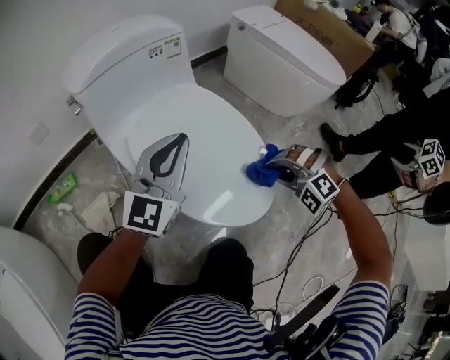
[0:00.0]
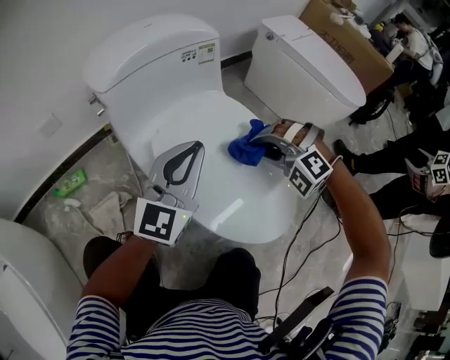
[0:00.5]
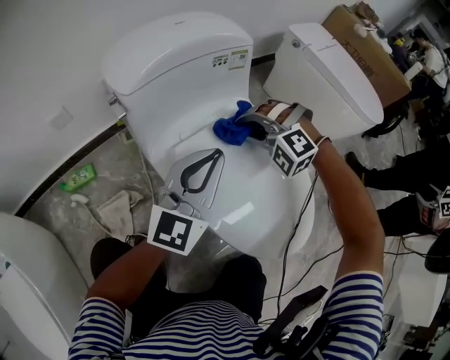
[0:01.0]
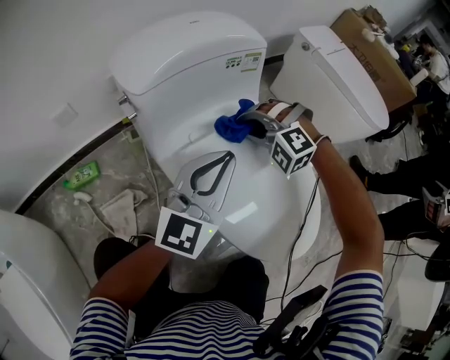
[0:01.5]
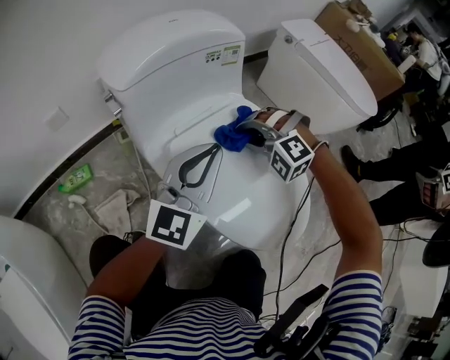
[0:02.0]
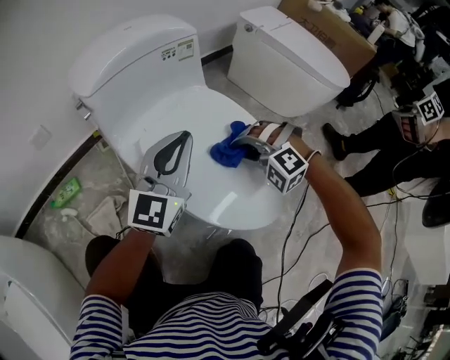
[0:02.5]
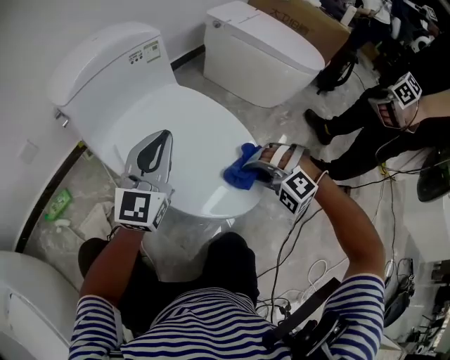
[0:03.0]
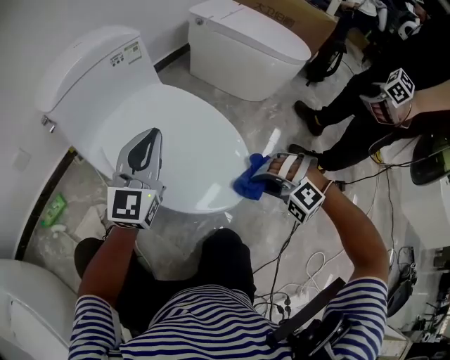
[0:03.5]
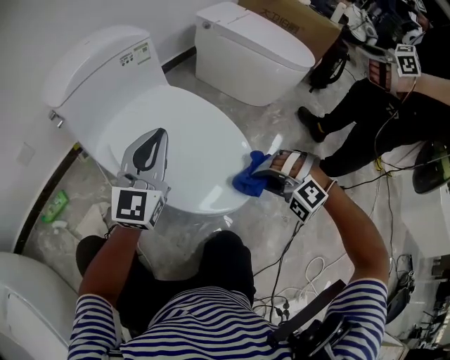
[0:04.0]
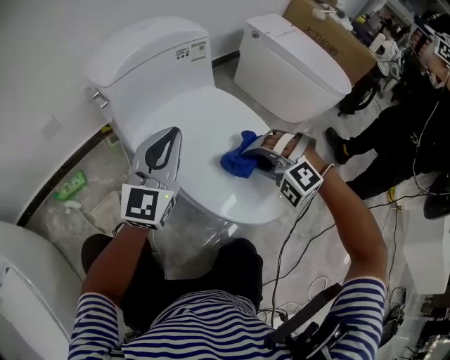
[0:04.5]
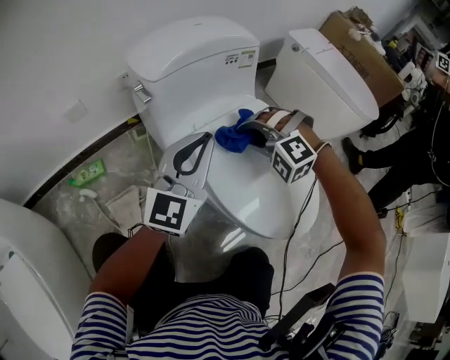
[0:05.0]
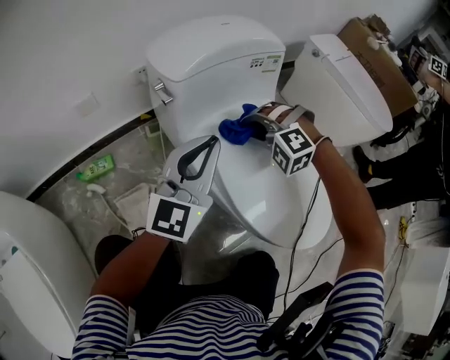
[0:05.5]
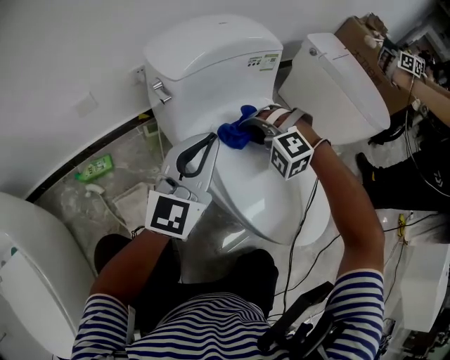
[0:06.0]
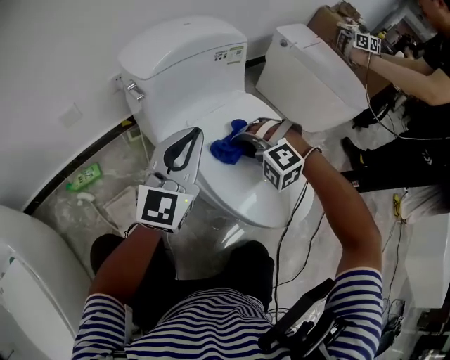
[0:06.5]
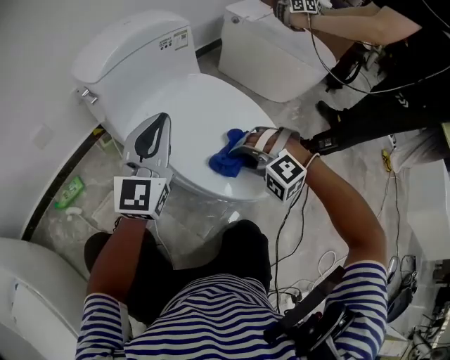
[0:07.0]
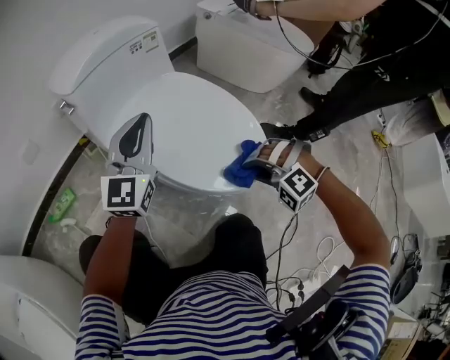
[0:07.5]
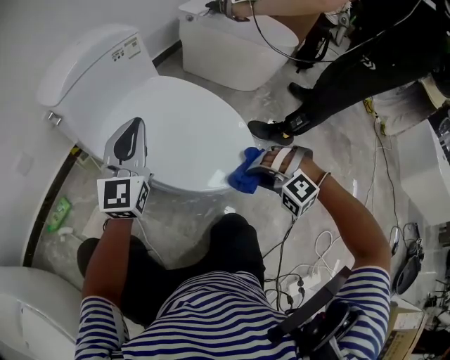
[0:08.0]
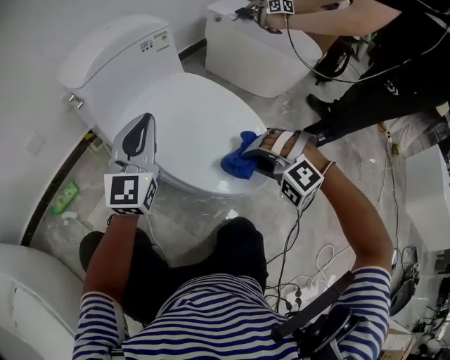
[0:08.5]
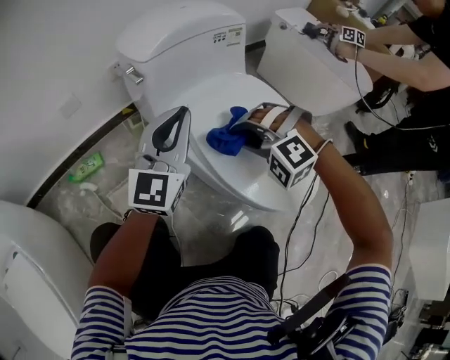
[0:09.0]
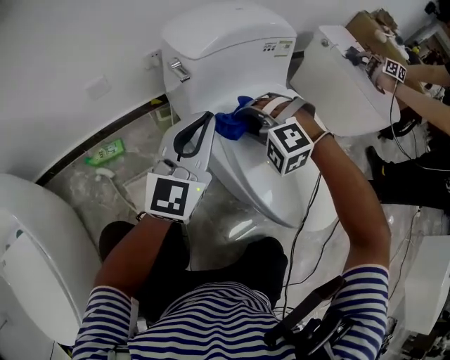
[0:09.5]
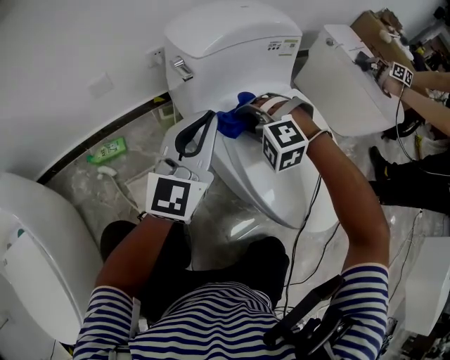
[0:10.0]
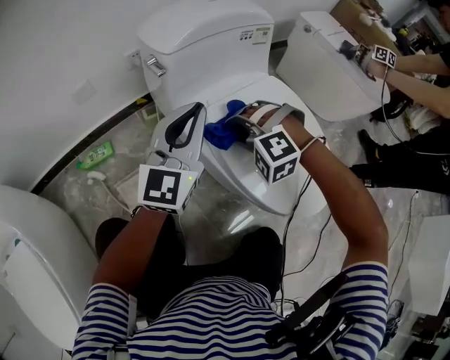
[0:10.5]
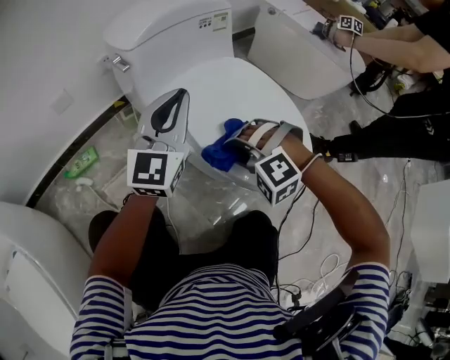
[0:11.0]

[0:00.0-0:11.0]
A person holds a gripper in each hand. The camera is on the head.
0:00.0 to 0:02.0: The left gripper moves roughly 10 cm.
0:02.0 to 0:03.5: The left gripper changes place by roughly 10 cm.
0:03.5 to 0:05.5: The left gripper shifts by some 20 cm.
0:05.5 to 0:07.5: The left gripper ends up some 10 cm from where it was.
0:07.5 to 0:09.0: The left gripper shifts by roughly 10 cm.

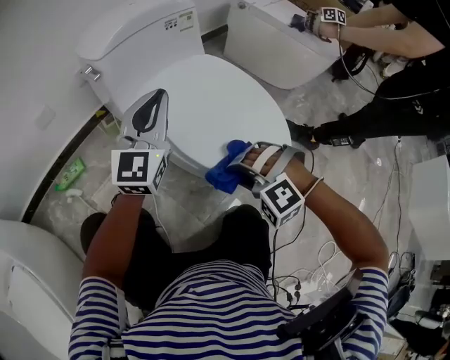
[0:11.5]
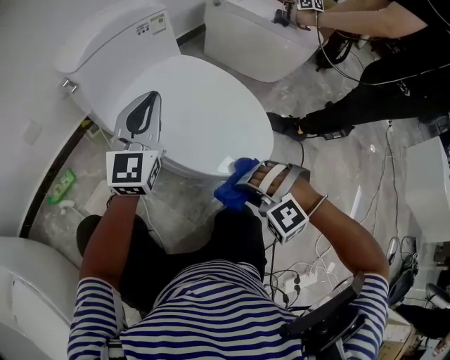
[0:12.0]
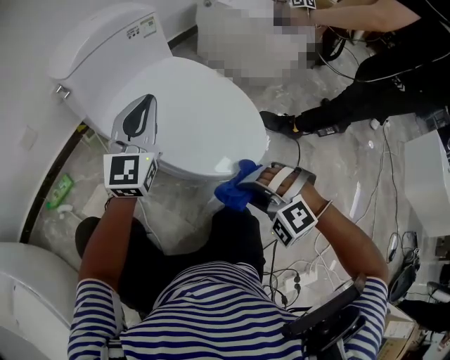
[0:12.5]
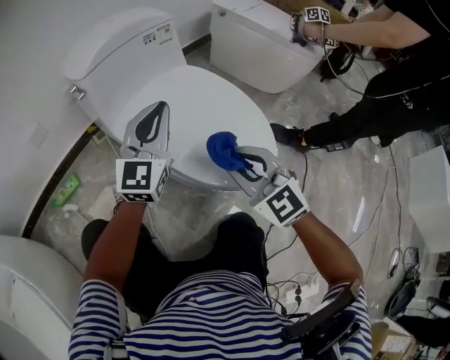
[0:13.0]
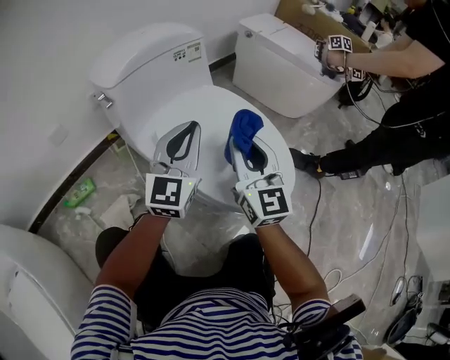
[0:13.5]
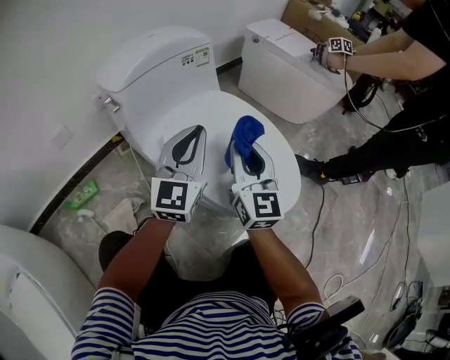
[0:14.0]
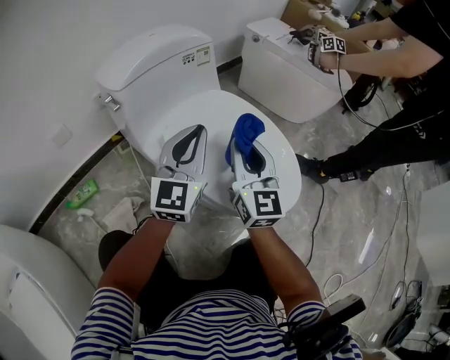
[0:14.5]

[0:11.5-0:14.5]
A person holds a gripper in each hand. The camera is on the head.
0:11.5 to 0:13.0: The left gripper moves some 5 cm.

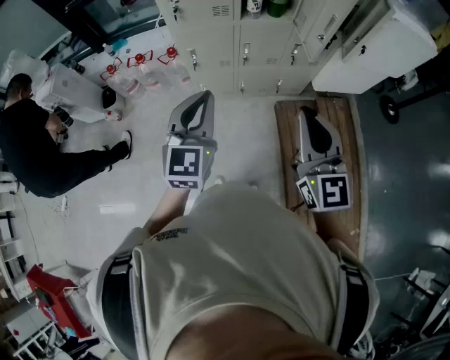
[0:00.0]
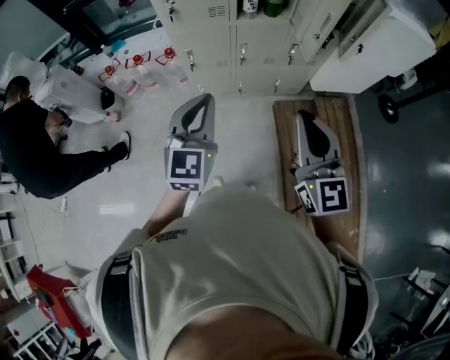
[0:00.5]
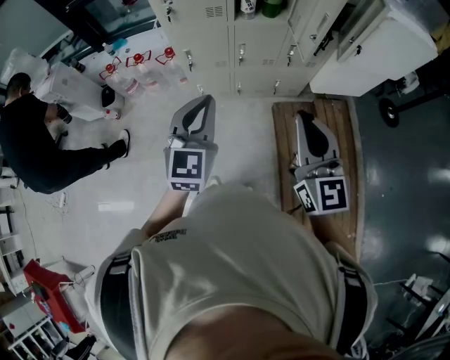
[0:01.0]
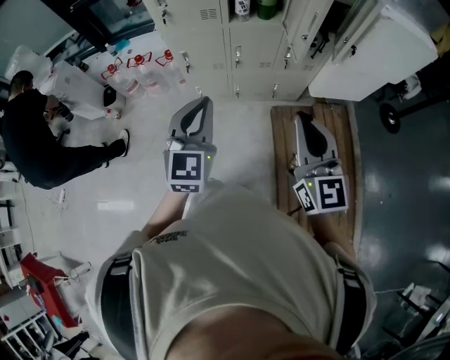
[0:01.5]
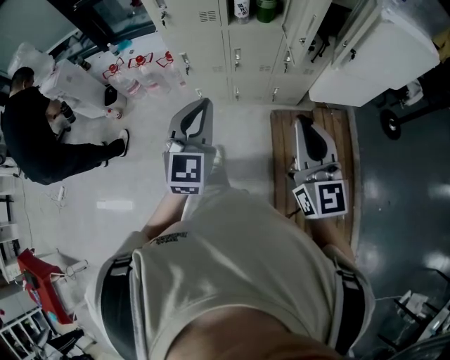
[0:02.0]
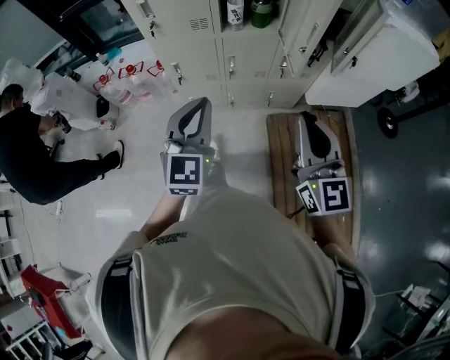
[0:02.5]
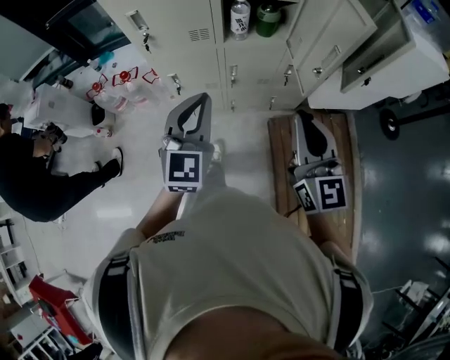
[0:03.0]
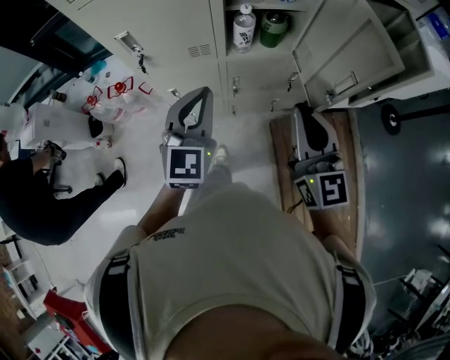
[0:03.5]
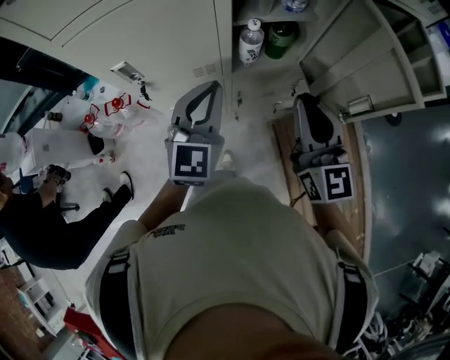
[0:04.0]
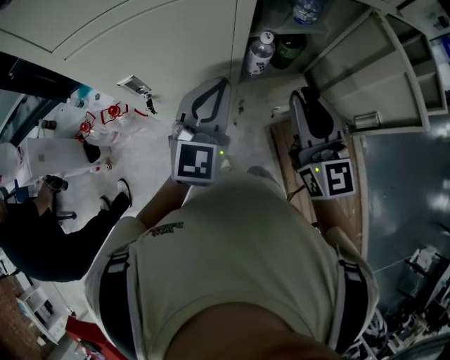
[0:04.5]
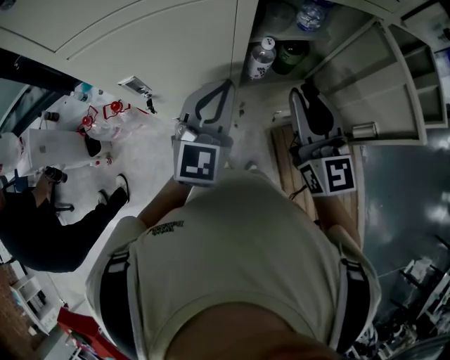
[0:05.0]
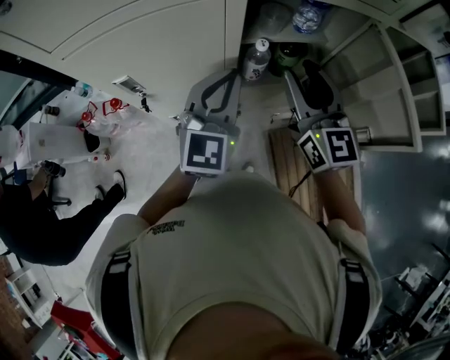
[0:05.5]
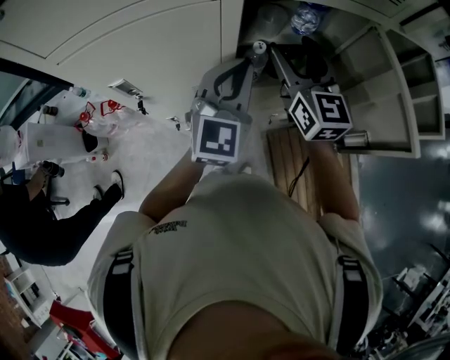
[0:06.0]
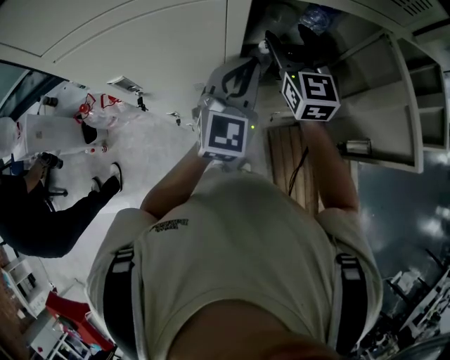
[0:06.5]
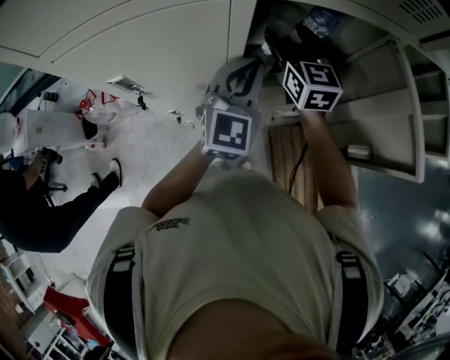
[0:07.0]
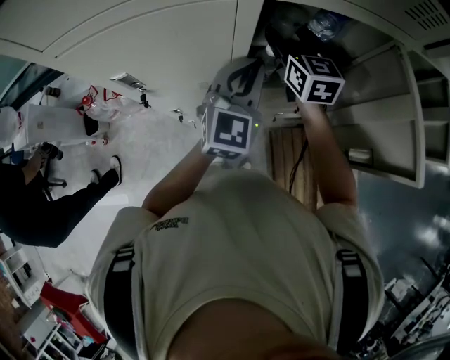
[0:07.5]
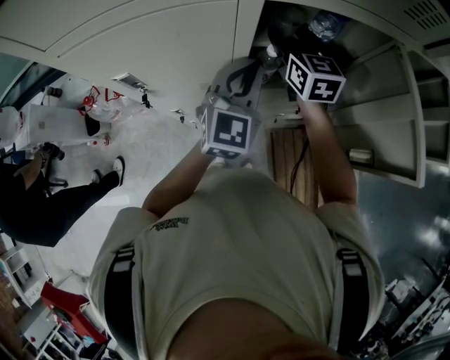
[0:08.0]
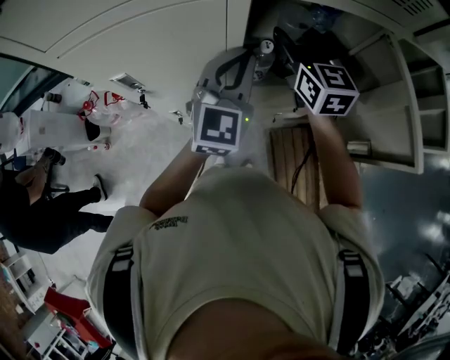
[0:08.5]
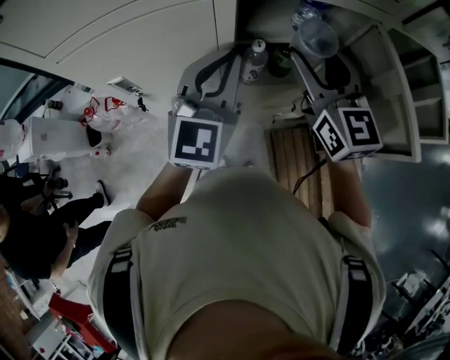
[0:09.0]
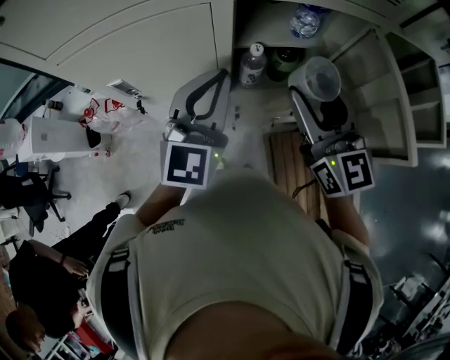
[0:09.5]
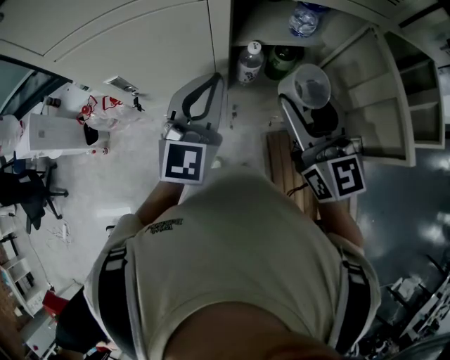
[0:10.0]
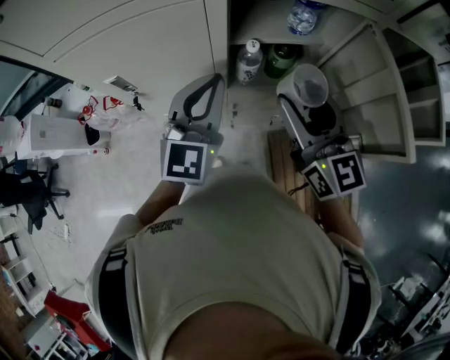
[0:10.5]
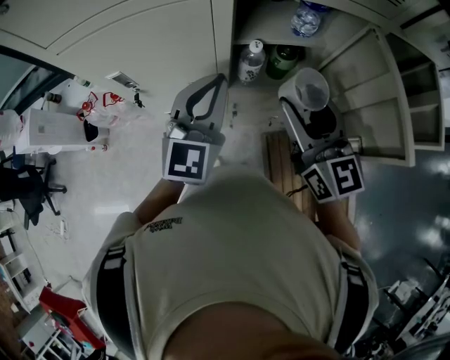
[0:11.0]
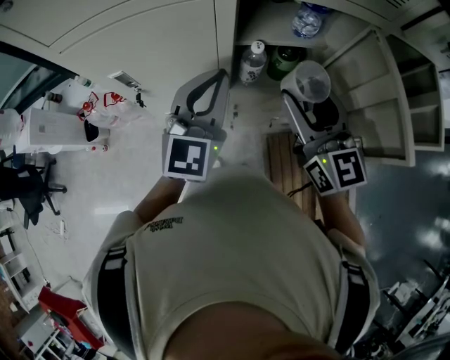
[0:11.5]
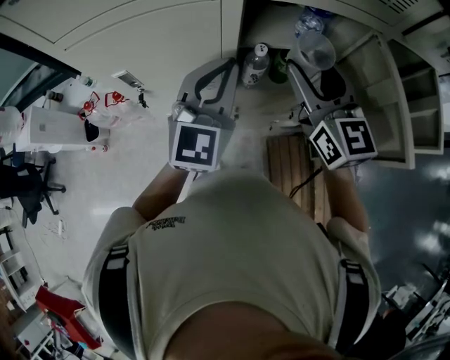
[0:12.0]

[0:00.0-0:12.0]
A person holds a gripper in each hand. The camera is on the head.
0:00.0 to 0:02.0: Both grippers travel together to the right, about 10 cm.
0:02.0 to 0:04.0: Both grippers move forward, about 40 cm.
0:04.0 to 0:06.0: The left gripper heads forward and to the right, covering about 10 cm; the right gripper goes approximately 20 cm forward, and opens.
0:06.0 to 0:08.0: The right gripper moves forward and downward, roughly 10 cm. Meanwhile the left gripper moves about 5 cm.
0:08.0 to 0:10.0: The right gripper goes approximately 20 cm backward. The left gripper is displaced backward by approximately 5 cm.
0:10.0 to 0:12.0: The right gripper moves forward, about 5 cm.

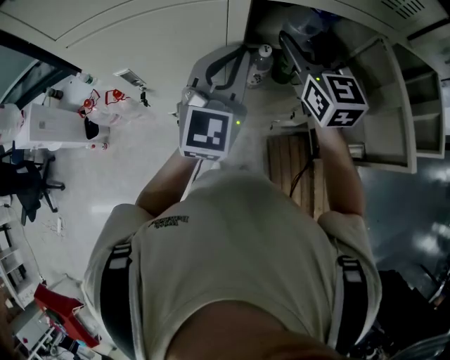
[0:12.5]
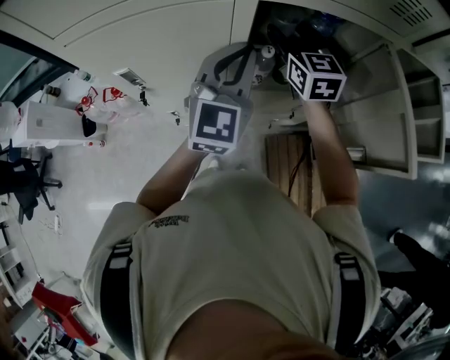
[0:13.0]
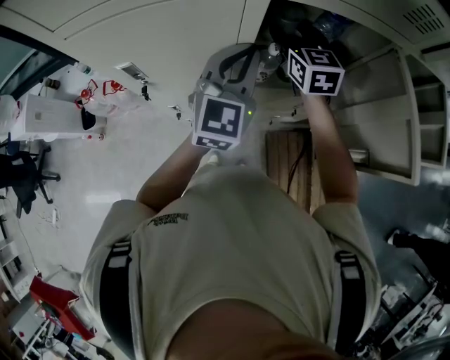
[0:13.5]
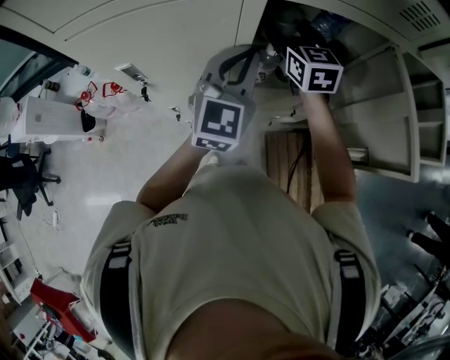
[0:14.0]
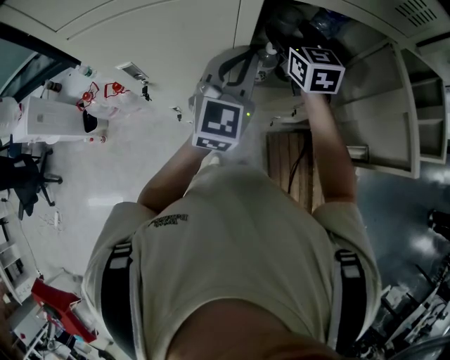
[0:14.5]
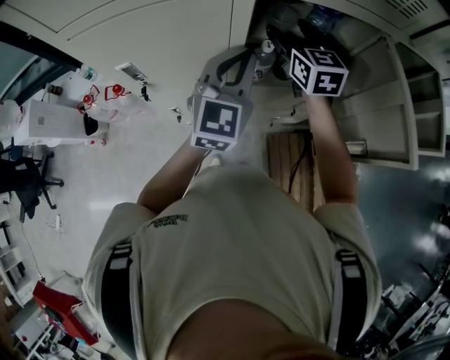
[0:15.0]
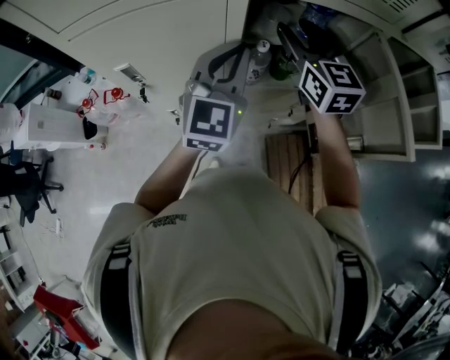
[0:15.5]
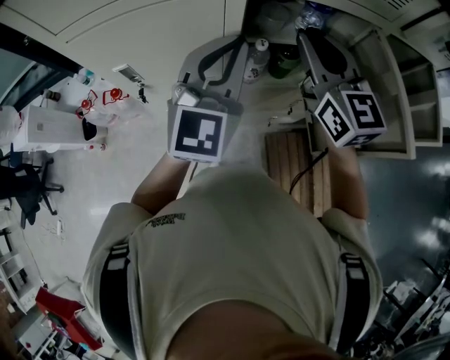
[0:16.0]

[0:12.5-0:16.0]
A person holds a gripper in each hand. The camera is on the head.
0:12.5 to 0:14.5: The right gripper heads downward and forward, covering roughly 10 cm, while the left gripper changes place by about 5 cm.
0:14.5 to 0:16.0: The right gripper moves upward and backward, approximately 15 cm, and closes. Meanwhile the left gripper moves upward, roughly 10 cm.
